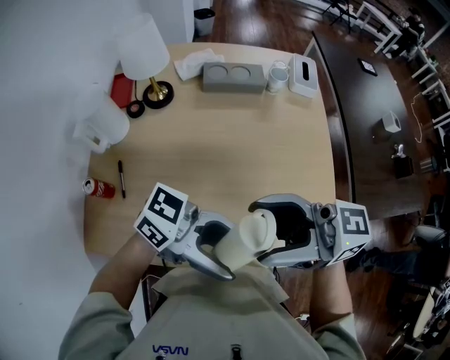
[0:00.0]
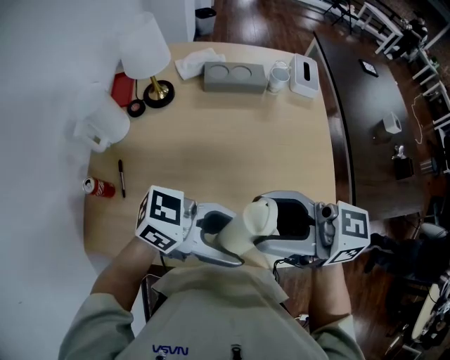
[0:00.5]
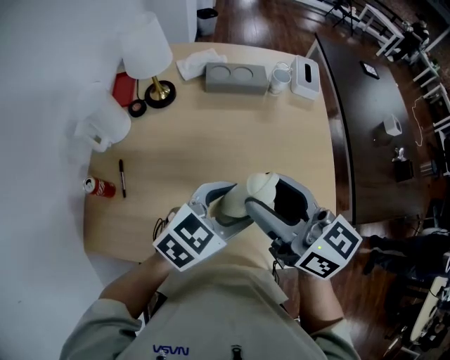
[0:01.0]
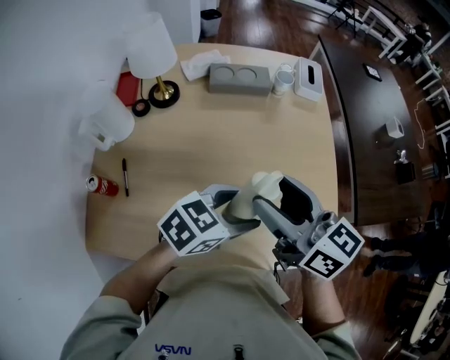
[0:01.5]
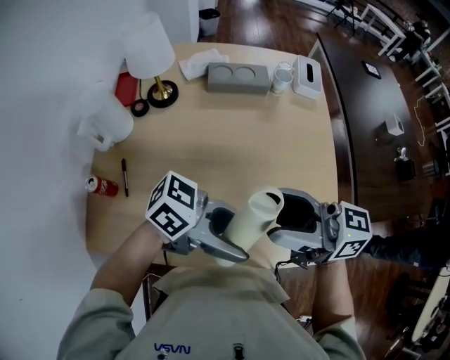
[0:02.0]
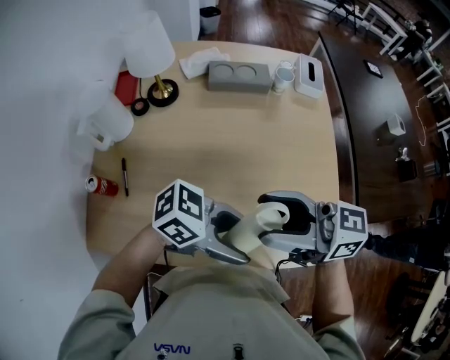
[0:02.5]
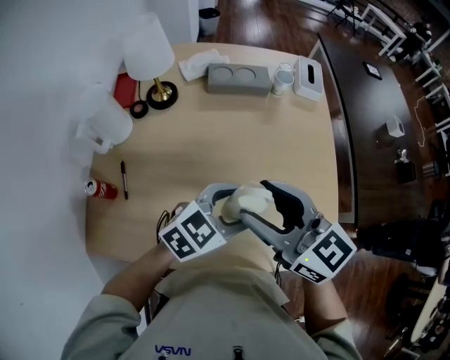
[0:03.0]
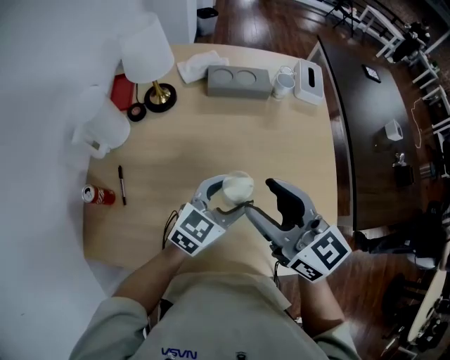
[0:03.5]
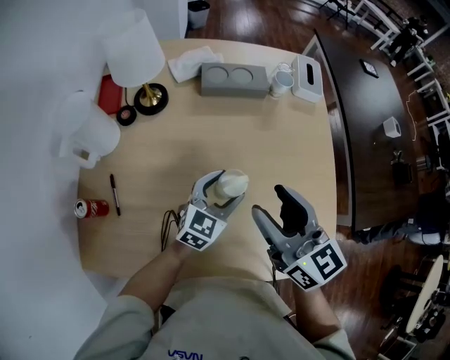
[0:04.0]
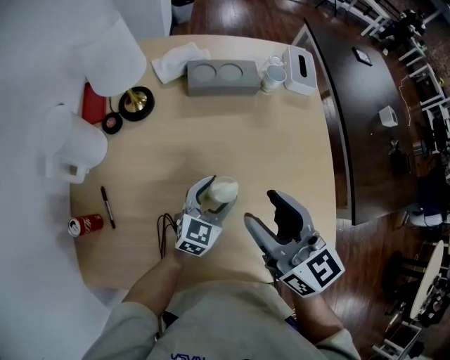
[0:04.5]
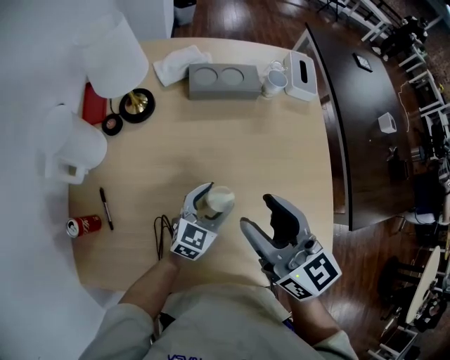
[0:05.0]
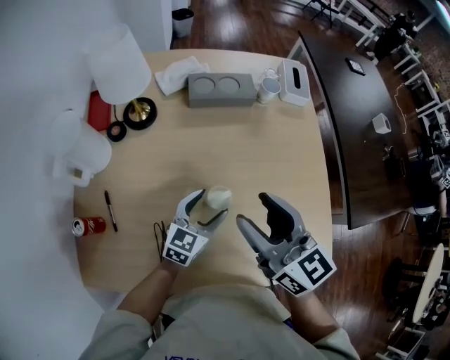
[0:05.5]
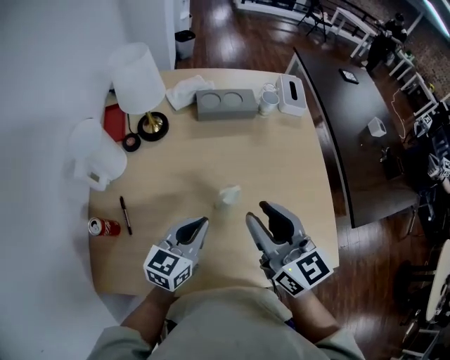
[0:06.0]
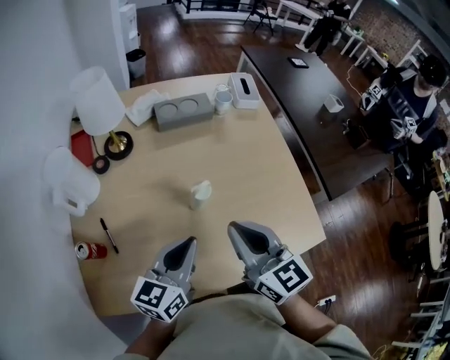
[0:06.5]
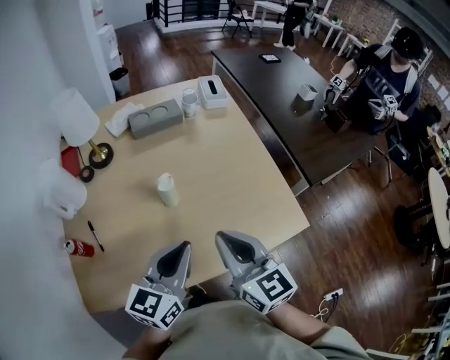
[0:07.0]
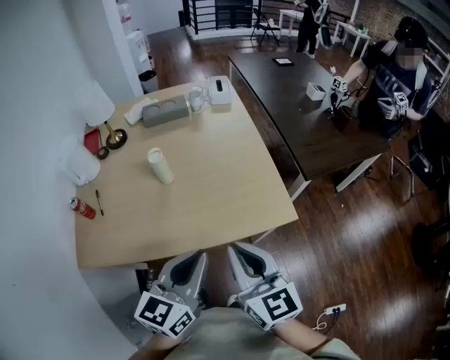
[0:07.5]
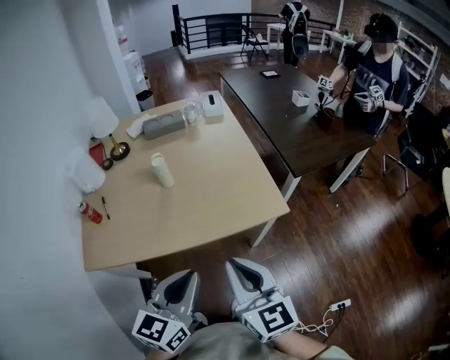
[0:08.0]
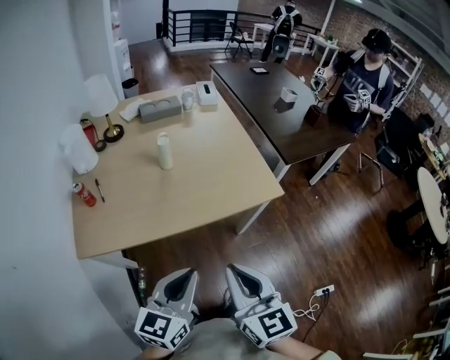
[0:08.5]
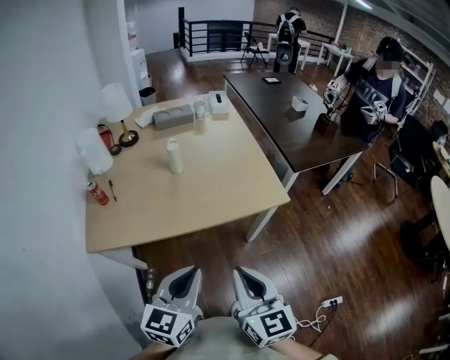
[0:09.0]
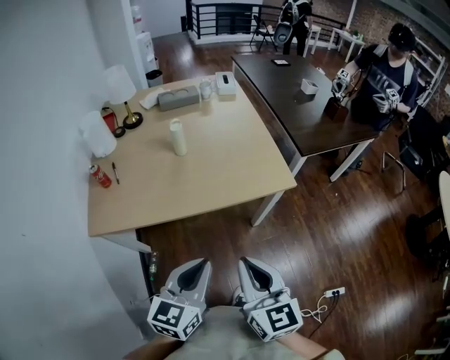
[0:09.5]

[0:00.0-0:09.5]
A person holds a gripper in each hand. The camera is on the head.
0:02.0 to 0:04.0: The right gripper changes place by approximately 10 cm, and changes its angle by some 50 degrees. The left gripper ends up approximately 25 cm from where it was, and changes its angle by roughly 70 degrees.
0:04.0 to 0:05.5: The grippers make only small movements.
0:05.5 to 0:07.5: The right gripper moves backward and to the right, about 35 cm, and closes. The left gripper is displaced backward, upward and to the right by approximately 40 cm, and closes.
0:07.5 to 0:09.5: Both grippers move backward, approximately 20 cm.

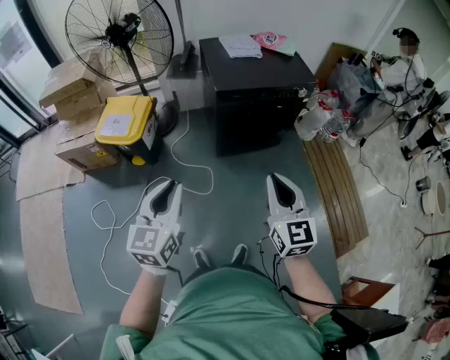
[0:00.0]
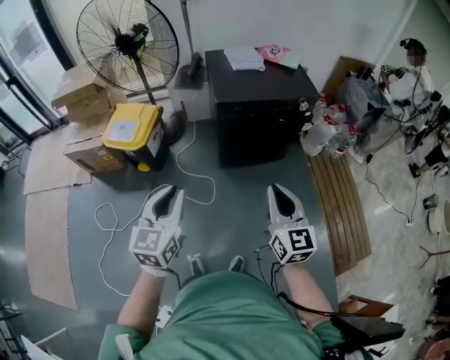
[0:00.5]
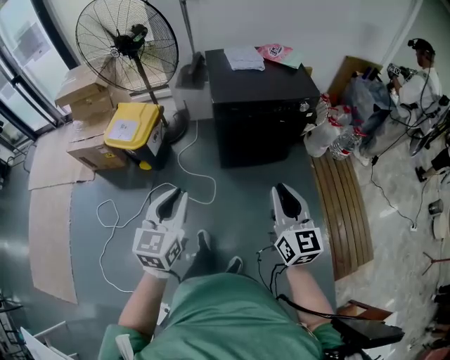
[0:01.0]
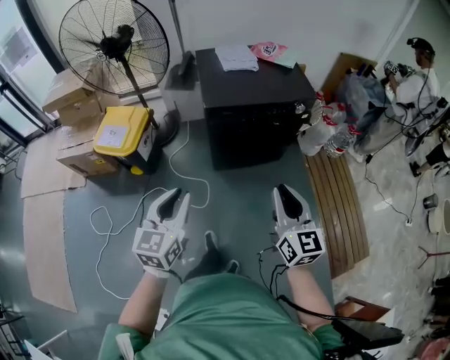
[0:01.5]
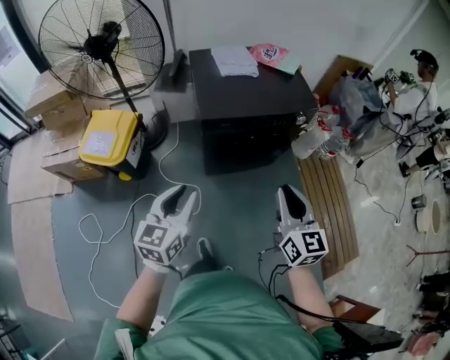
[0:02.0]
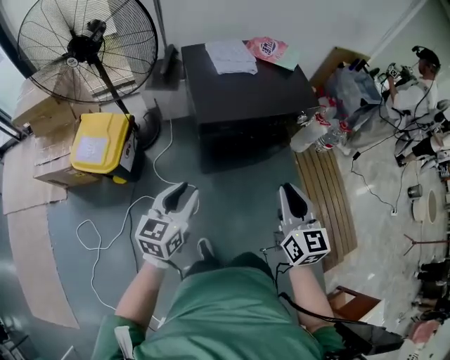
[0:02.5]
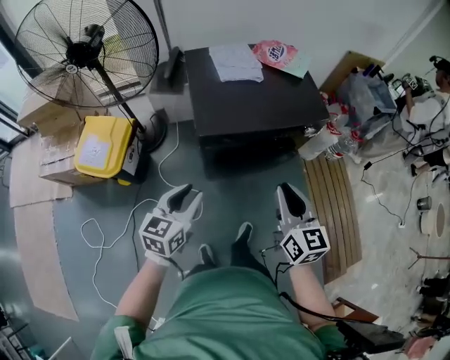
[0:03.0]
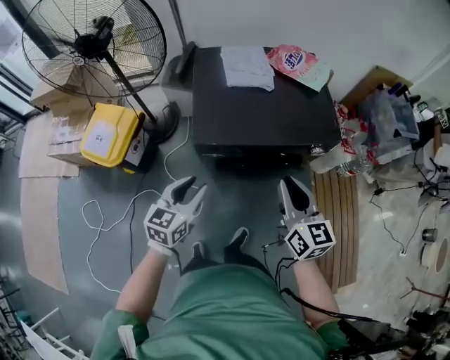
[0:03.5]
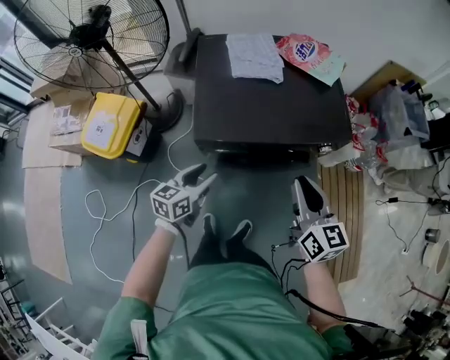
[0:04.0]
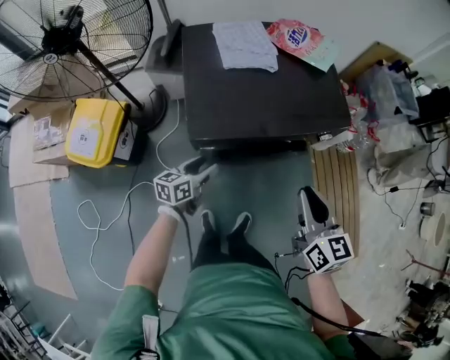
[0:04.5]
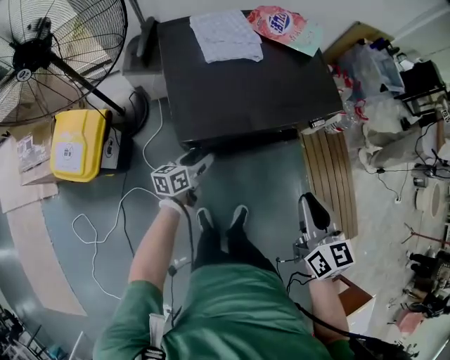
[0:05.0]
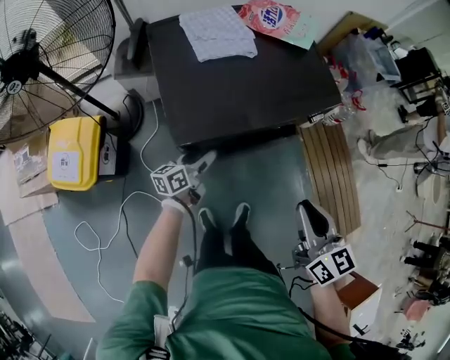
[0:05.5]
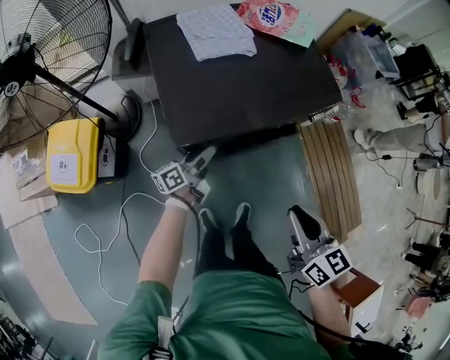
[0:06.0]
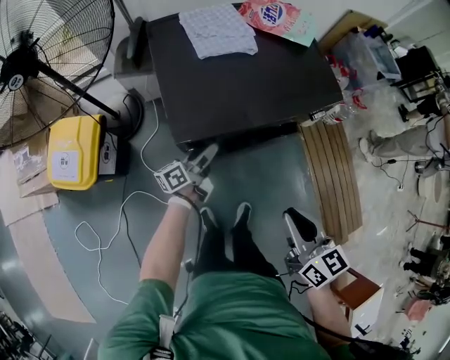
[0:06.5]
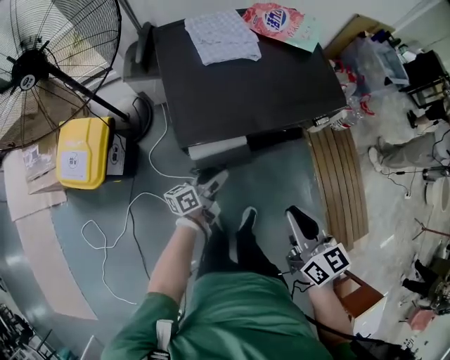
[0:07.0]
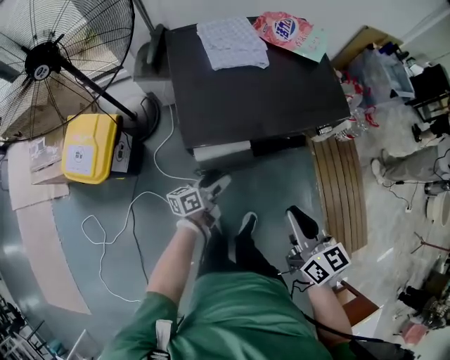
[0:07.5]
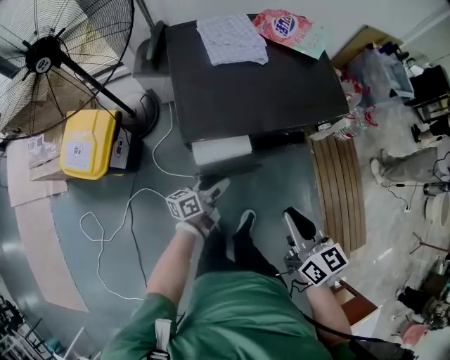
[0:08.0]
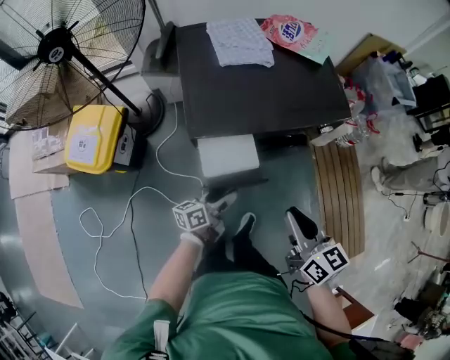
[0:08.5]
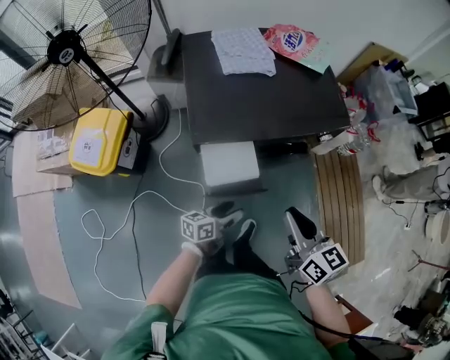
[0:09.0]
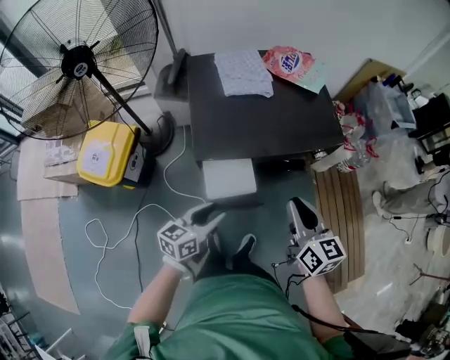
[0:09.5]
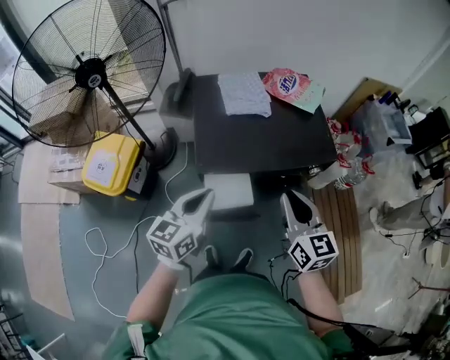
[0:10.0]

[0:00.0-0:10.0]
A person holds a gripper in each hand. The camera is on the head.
0:00.0 to 0:02.0: The grippers both shift forward and to the right by about 20 cm.
0:02.0 to 0:04.0: The left gripper goes about 35 cm forward and downward; the right gripper moves forward, some 30 cm.
0:04.0 to 0:06.0: The left gripper shifts approximately 15 cm downward and forward, and rotates about 40 degrees. Meanwhile the right gripper goes some 10 cm backward and downward.
0:06.0 to 0:08.0: The left gripper moves backward, about 10 cm.
0:08.0 to 0:10.0: The left gripper travels upward by roughly 30 cm, swivels some 40 degrees, and closes its fingers. Meanwhile the right gripper goes about 15 cm upward and forward.

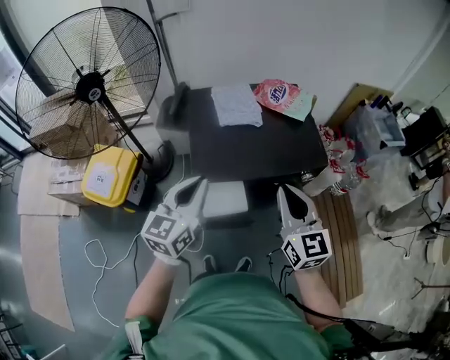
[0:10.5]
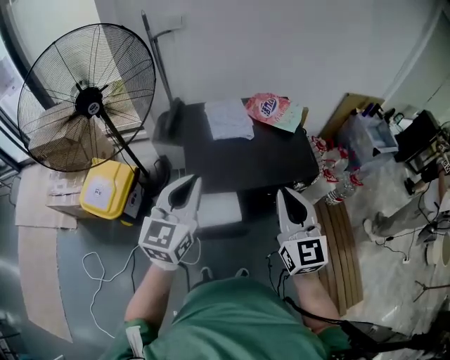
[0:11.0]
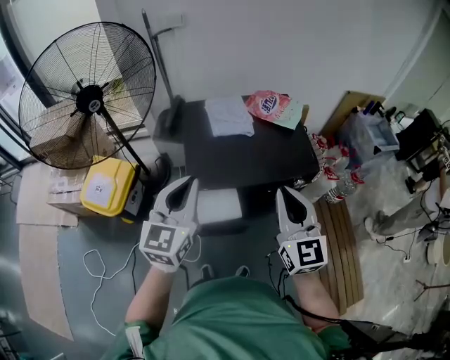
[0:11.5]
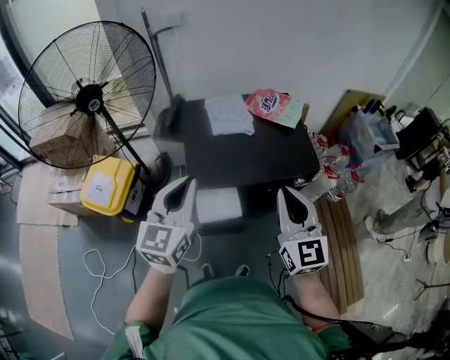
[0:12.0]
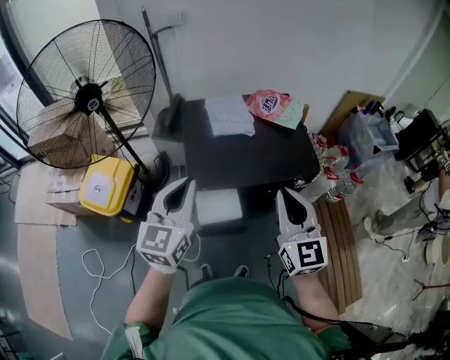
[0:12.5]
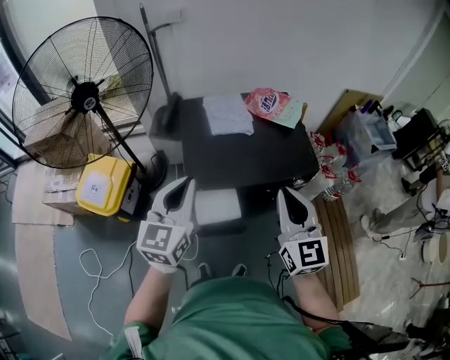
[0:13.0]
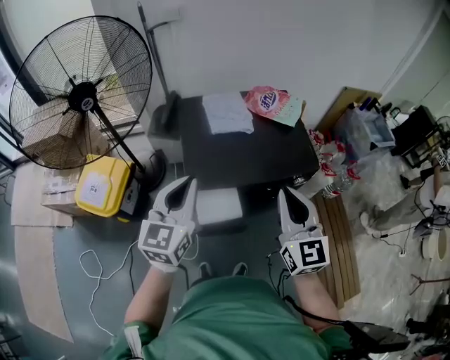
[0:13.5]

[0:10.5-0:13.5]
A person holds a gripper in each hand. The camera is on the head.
0:10.5 to 0:12.0: The left gripper heads upward, covering approximately 5 cm, while the right gripper changes place by roughly 5 cm.
0:12.0 to 0:13.5: There are only small adjustments of the grippers.

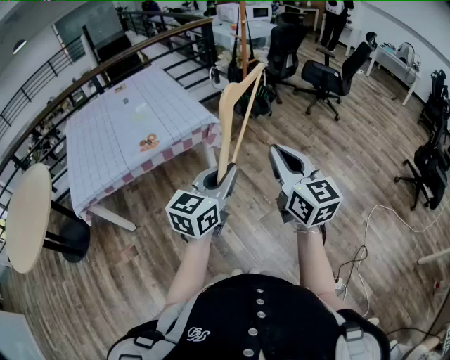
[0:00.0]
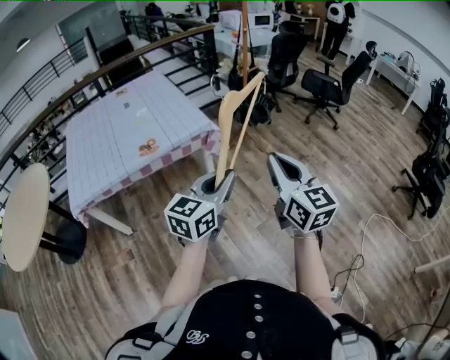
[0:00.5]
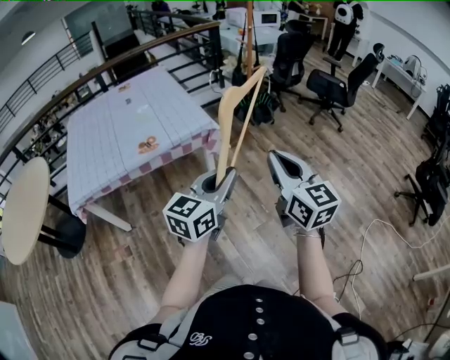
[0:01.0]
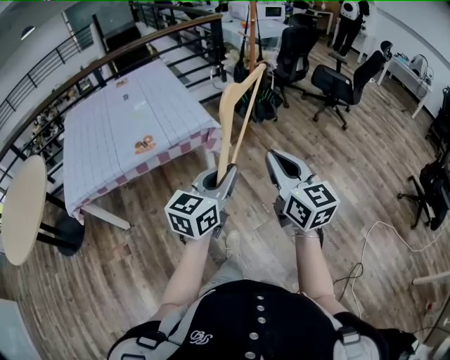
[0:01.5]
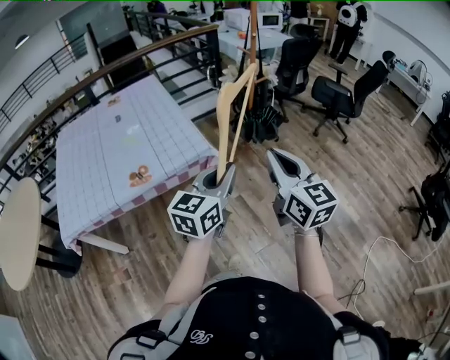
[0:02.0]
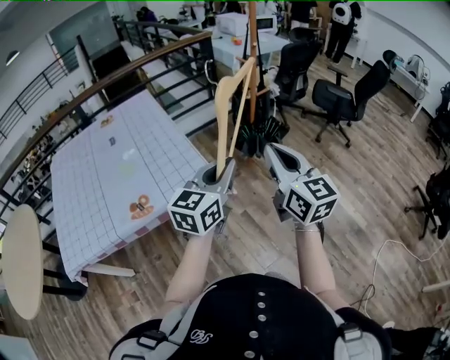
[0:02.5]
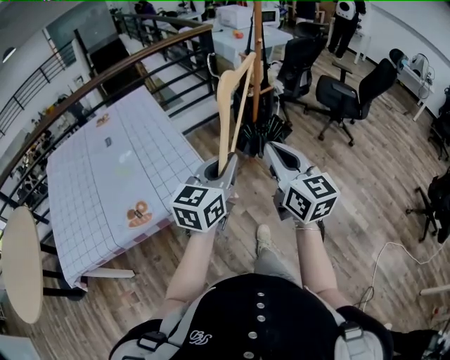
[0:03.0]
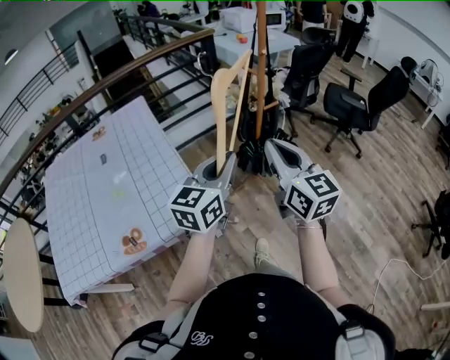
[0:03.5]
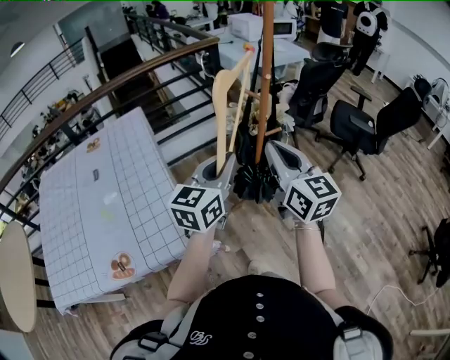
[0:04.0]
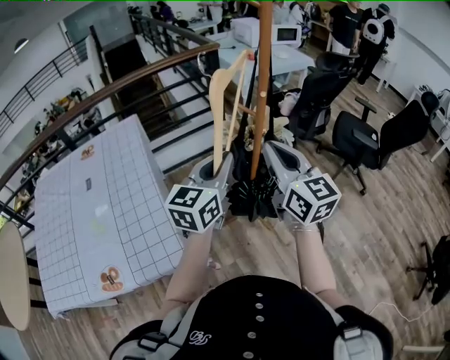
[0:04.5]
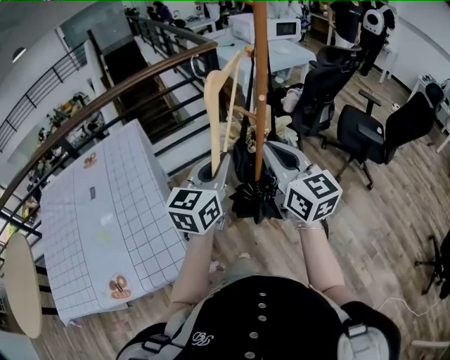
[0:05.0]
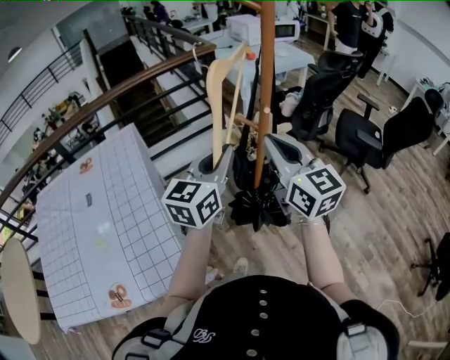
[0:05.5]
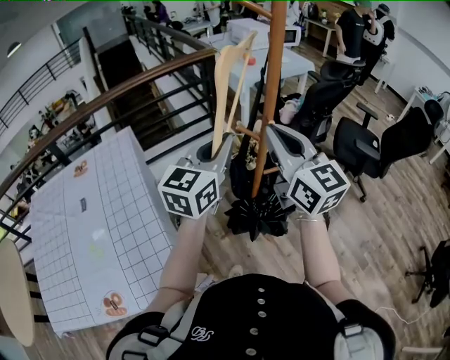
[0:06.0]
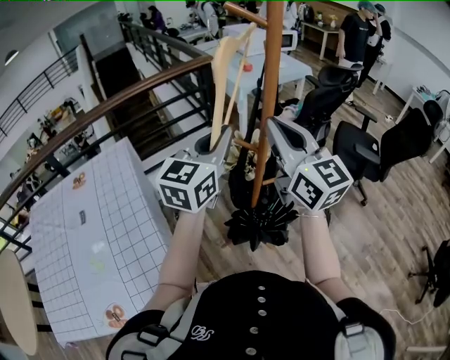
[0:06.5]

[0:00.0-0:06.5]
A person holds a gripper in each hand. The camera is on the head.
0:00.0 to 0:02.0: The grippers both shift forward by about 25 cm.
0:02.0 to 0:04.5: The pair of grippers is taken forward, roughly 50 cm.
0:04.5 to 0:06.5: Both grippers move forward and upward, about 20 cm.
